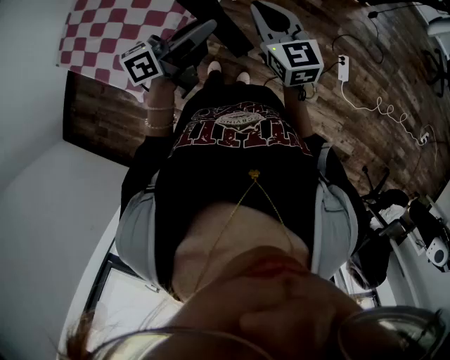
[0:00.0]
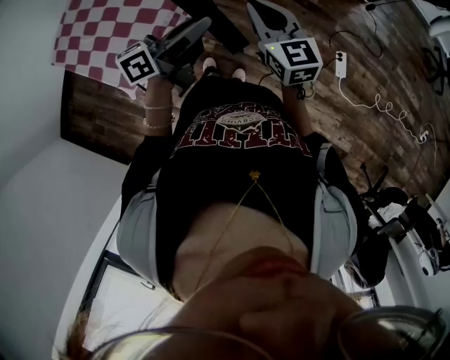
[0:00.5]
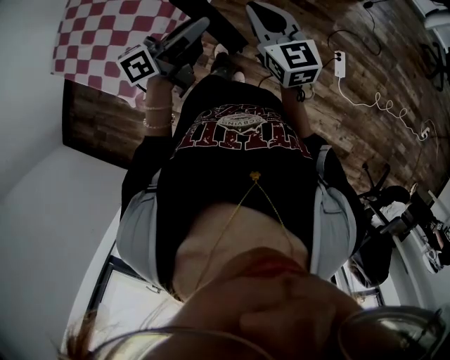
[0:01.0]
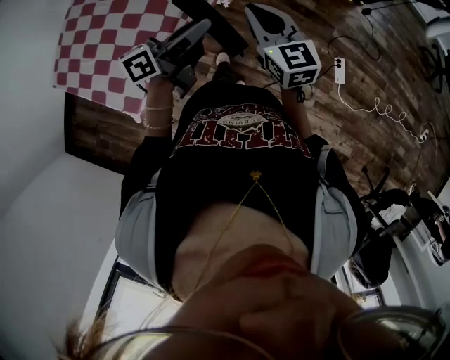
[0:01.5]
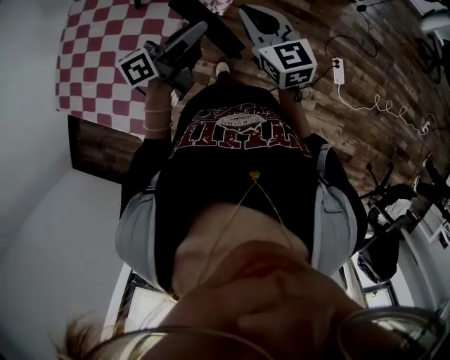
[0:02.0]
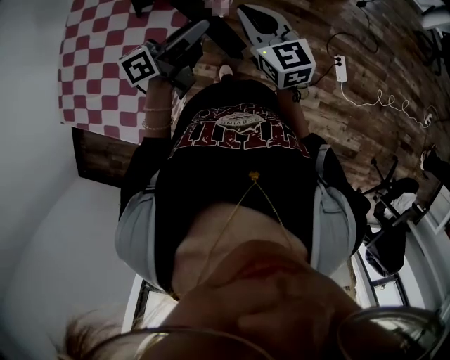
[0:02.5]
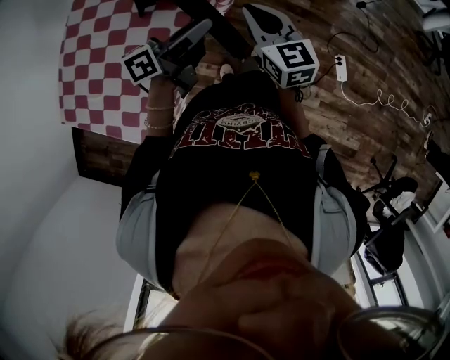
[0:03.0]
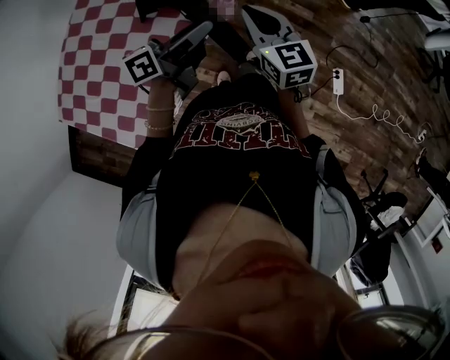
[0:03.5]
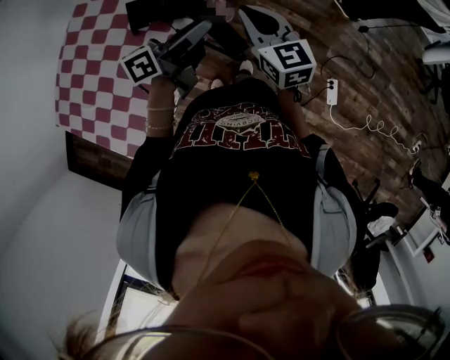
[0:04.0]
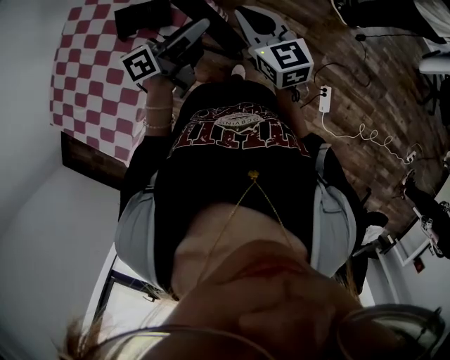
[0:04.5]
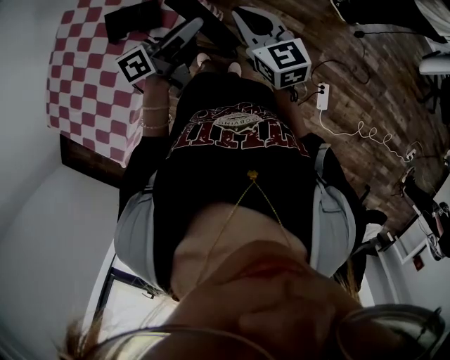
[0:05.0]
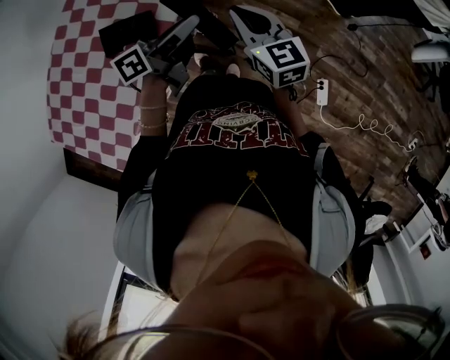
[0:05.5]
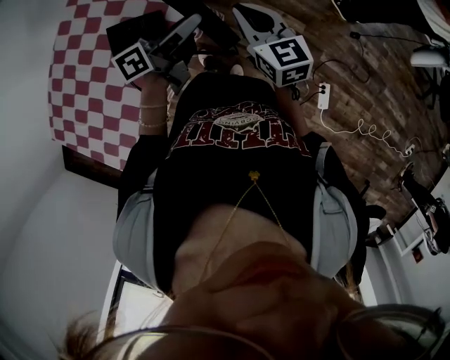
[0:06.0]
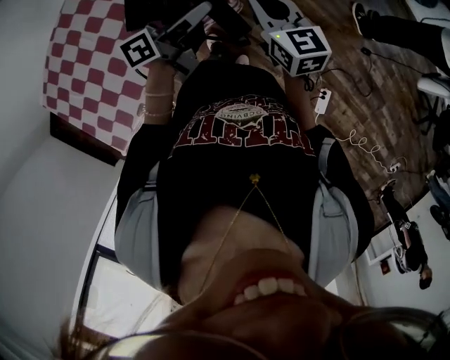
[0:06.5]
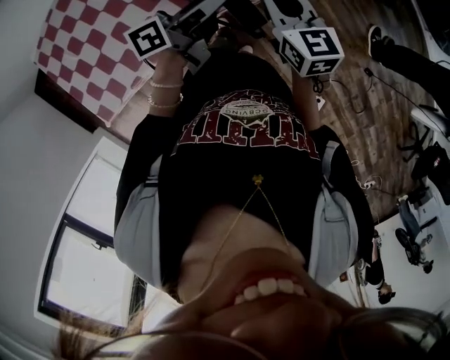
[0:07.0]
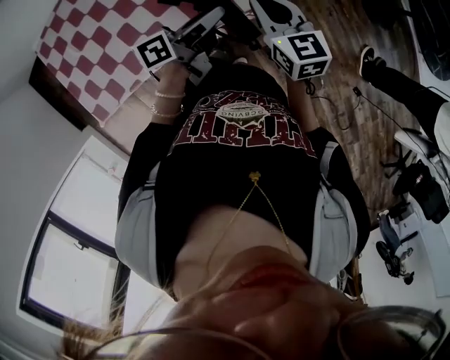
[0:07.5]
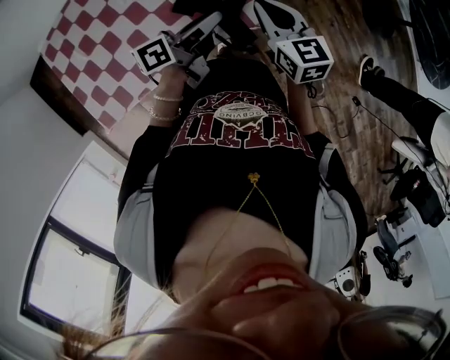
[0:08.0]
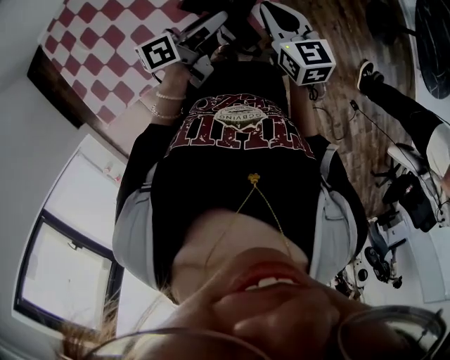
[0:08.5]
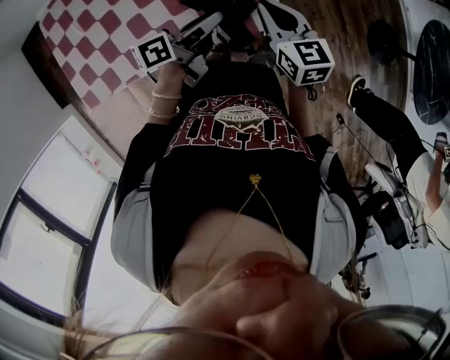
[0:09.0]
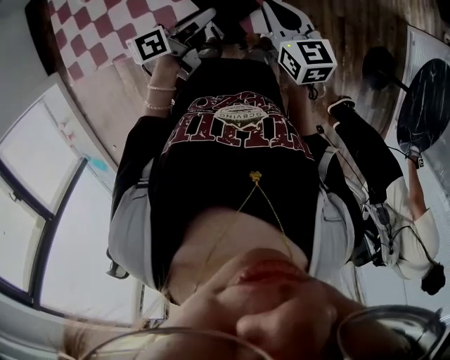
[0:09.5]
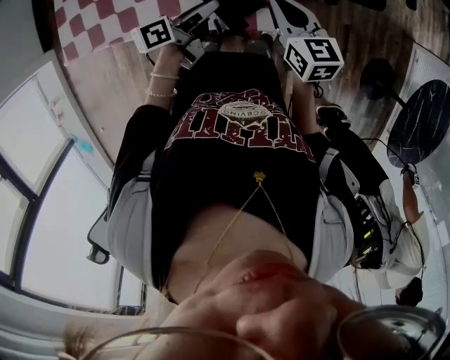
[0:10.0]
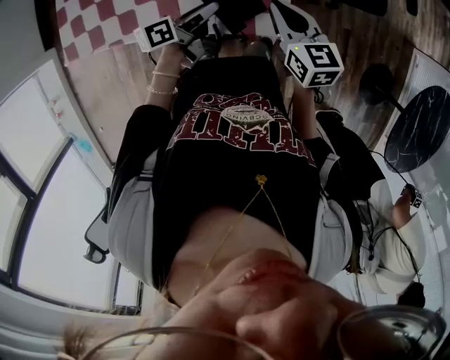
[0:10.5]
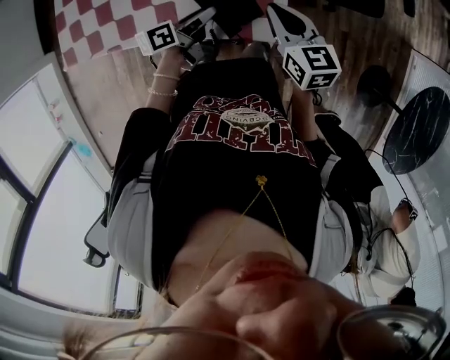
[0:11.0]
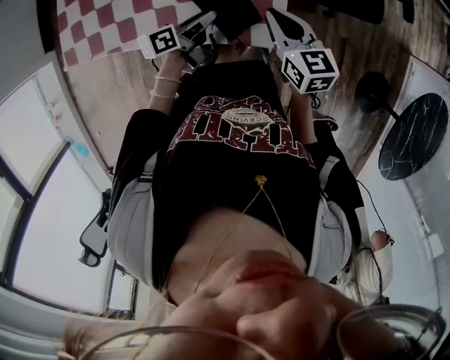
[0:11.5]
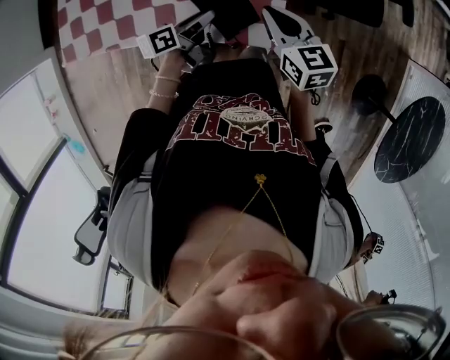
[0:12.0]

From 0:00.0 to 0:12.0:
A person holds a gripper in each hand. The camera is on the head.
From 0:00.0 to 0:02.0: Both grippers move forward, approximately 15 cm.
From 0:02.0 to 0:04.0: The grippers both shift forward by about 15 cm.
From 0:04.0 to 0:06.0: The two grippers go some 10 cm forward.
From 0:06.0 to 0:08.0: The right gripper ends up about 20 cm from where it was, and turns by roughly 30 degrees, while the left gripper shifts by about 20 cm, and swivels roughly 30 degrees.
From 0:08.0 to 0:10.0: The right gripper moves approximately 5 cm, and turns by approximately 30 degrees, while the left gripper shifts roughly 10 cm downward, and turns by approximately 30 degrees.
From 0:10.0 to 0:12.0: The left gripper moves downward, some 5 cm.

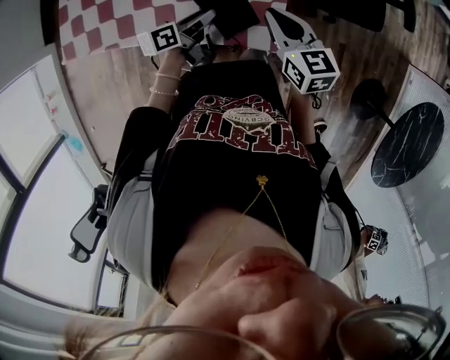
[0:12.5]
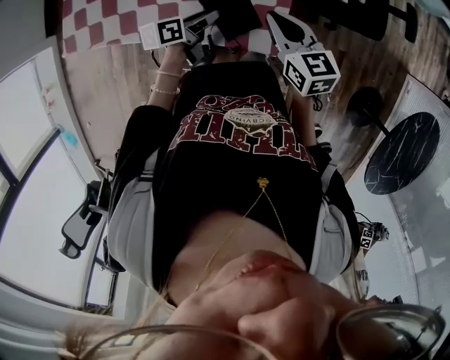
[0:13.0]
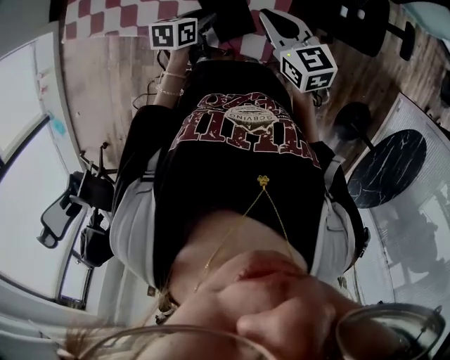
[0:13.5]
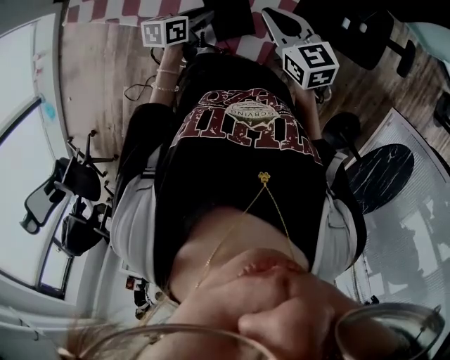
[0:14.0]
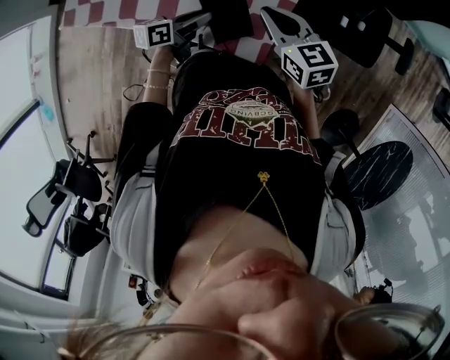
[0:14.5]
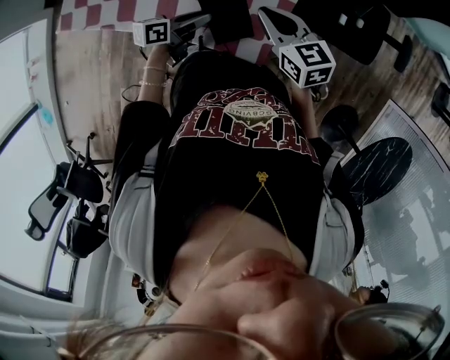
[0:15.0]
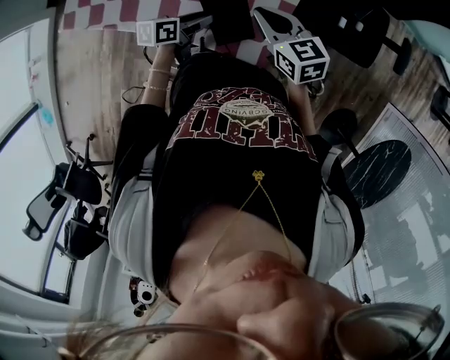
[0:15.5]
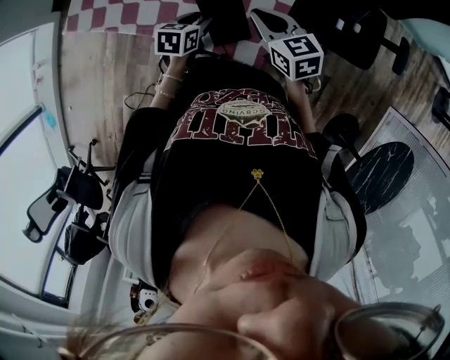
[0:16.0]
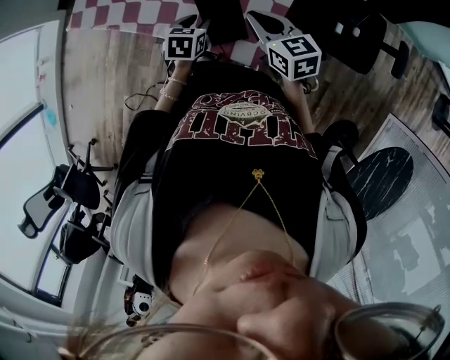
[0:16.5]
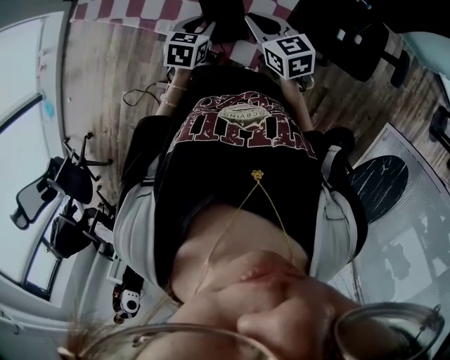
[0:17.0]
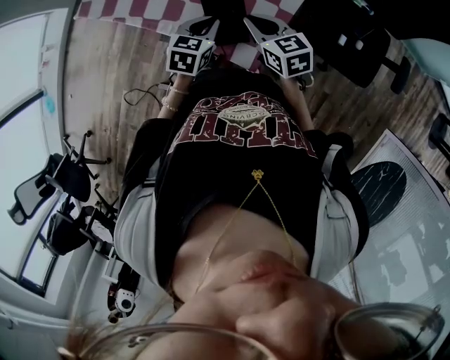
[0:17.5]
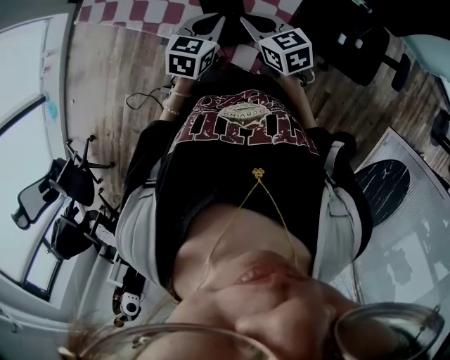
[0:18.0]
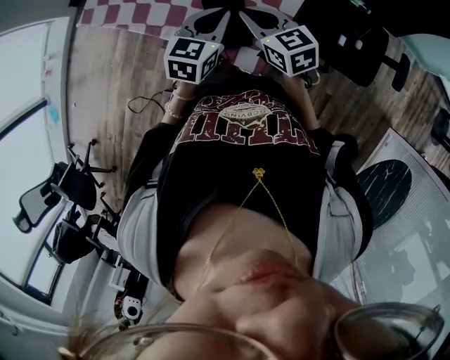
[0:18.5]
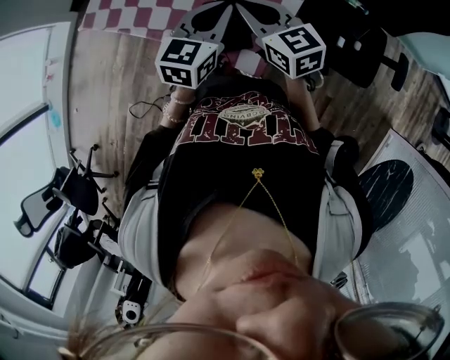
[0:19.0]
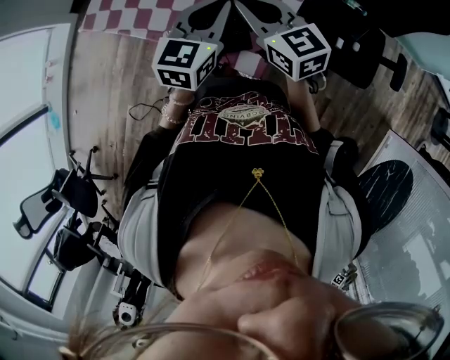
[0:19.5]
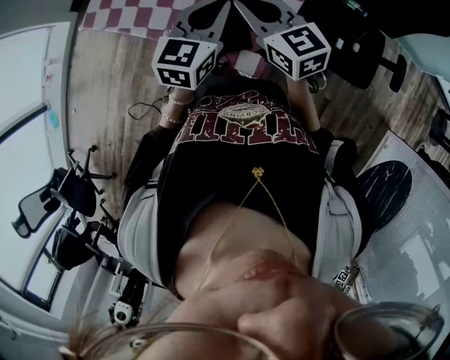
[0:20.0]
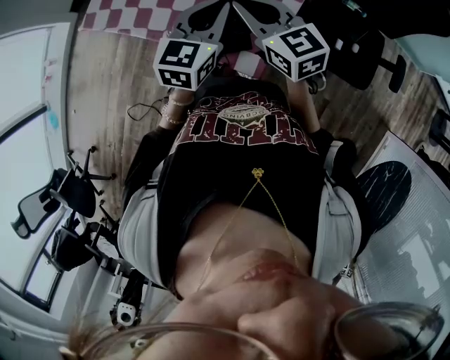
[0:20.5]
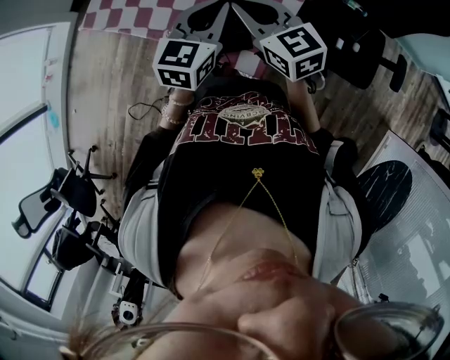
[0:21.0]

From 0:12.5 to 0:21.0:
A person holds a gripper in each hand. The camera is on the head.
From 0:12.5 to 0:14.5: The right gripper changes its angle by approximately 20 degrees.
From 0:14.5 to 0:16.5: The left gripper angles its fingers downward, by roughly 30 degrees.
From 0:16.5 to 0:19.0: The right gripper is displaced upward by about 10 cm; the left gripper shifts roughly 20 cm upward, angles its fingers upward, by approximately 30 degrees, and closes up.
From 0:19.0 to 0:21.0: The grippers move only a little.

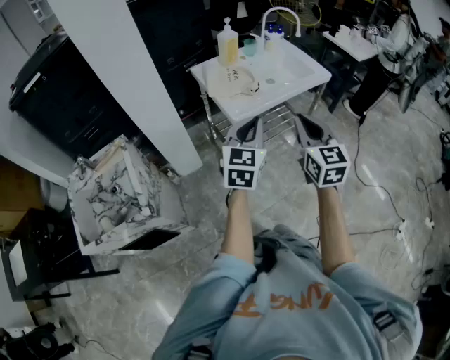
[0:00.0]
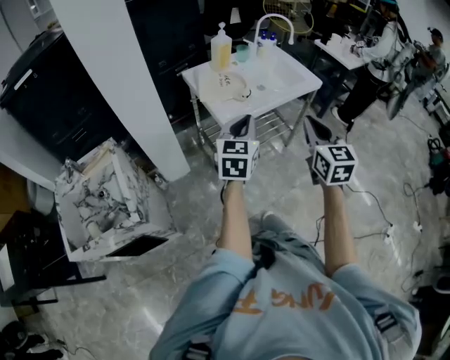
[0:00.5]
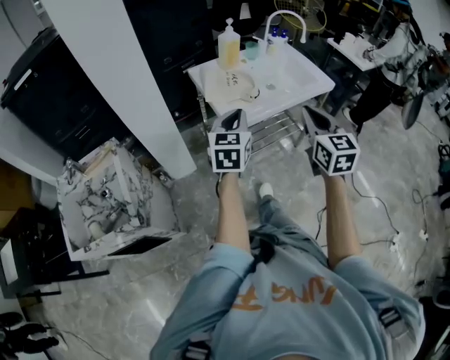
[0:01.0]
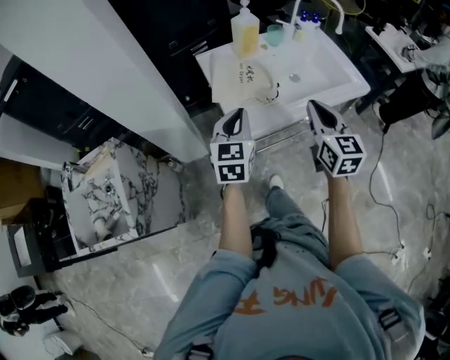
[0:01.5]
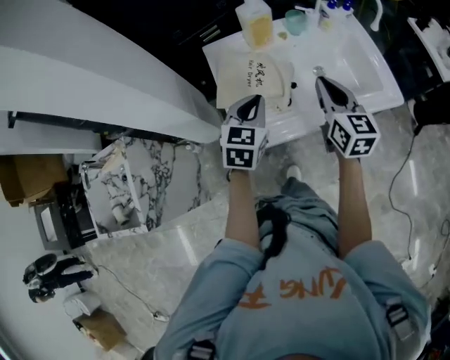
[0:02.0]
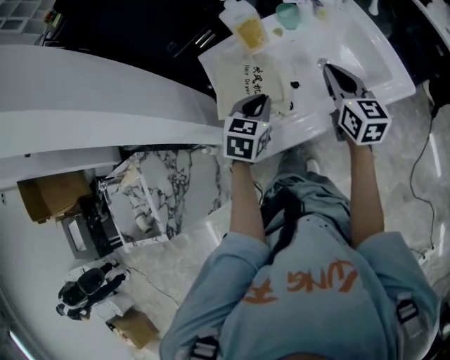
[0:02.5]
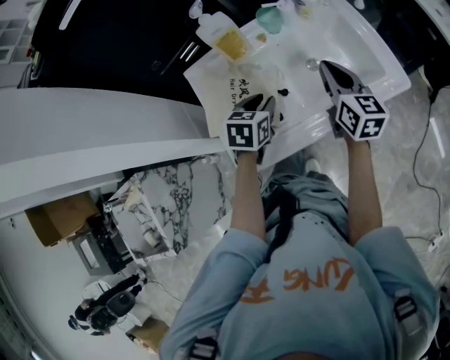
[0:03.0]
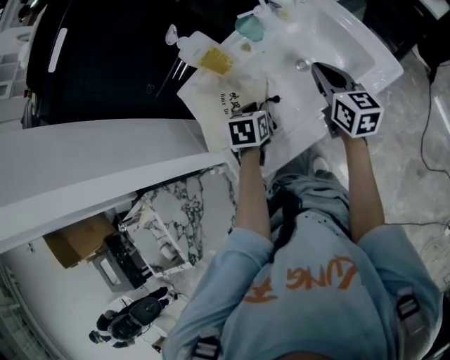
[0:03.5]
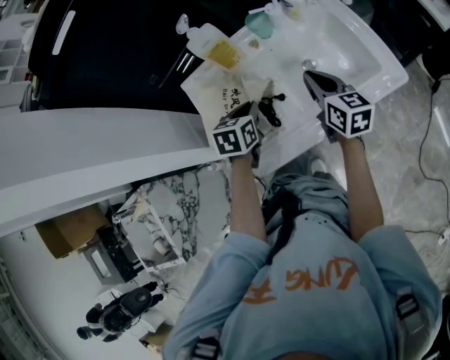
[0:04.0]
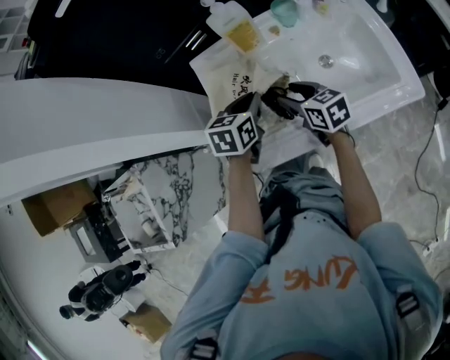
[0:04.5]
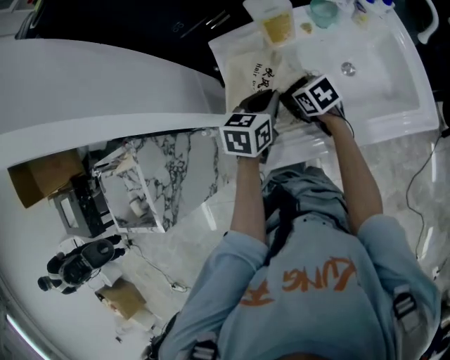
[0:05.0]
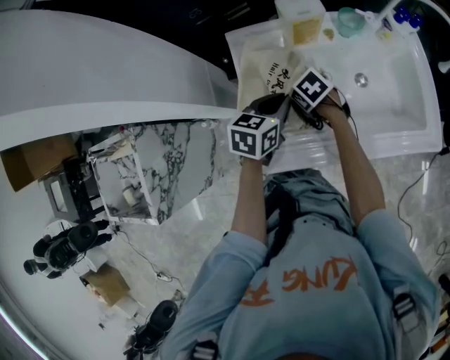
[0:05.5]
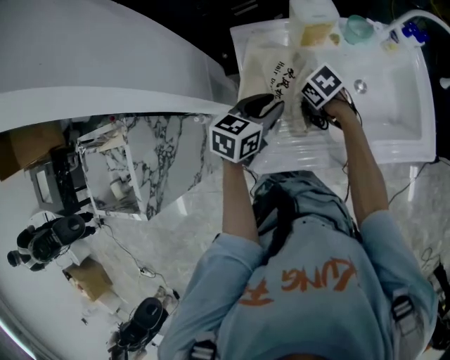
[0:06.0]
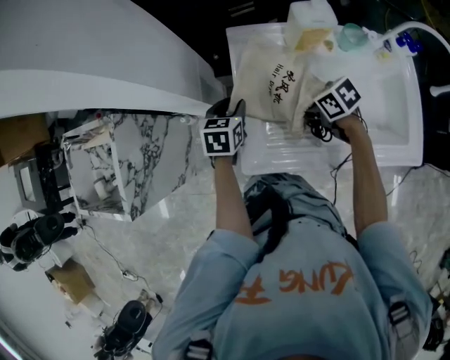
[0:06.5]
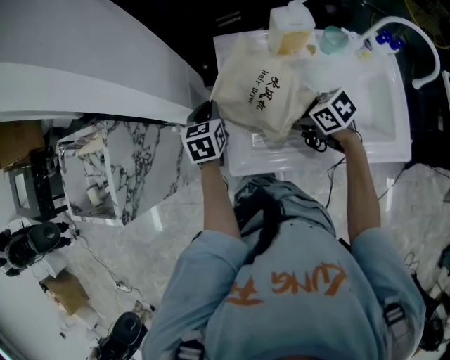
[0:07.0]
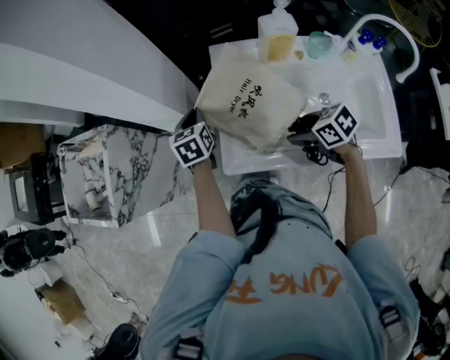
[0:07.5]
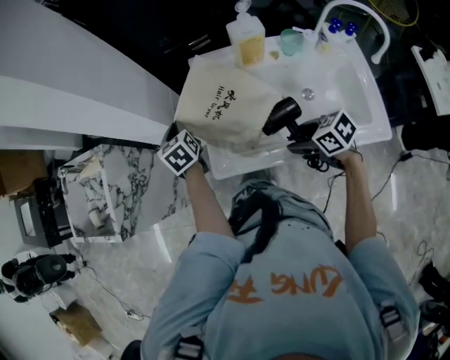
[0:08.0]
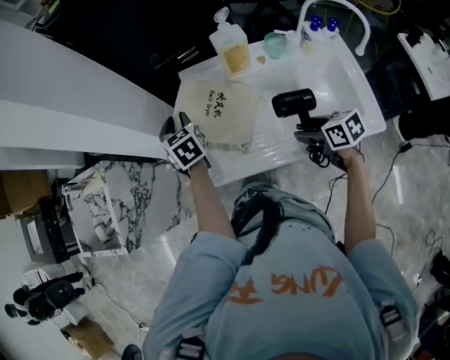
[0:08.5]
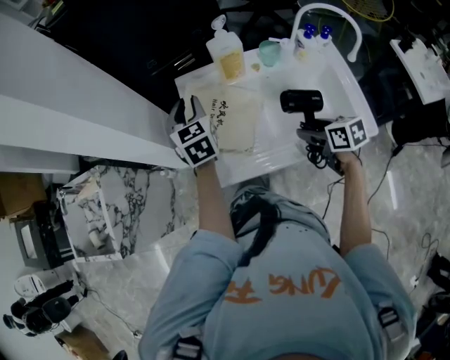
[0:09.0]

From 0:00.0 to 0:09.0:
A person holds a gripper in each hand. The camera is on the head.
From 0:00.0 to 0:02.0: Both grippers move forward, some 40 cm. The right gripper changes its angle by some 20 degrees. Meanwhile the left gripper changes its angle by about 30 degrees.
From 0:02.0 to 0:04.5: The right gripper goes about 20 cm downward and to the left, changes its angle by some 30 degrees, and opens. Meanwhile the left gripper travels forward and downward by roughly 15 cm, turns by about 20 degrees, and opens and closes again.
From 0:04.5 to 0:07.0: The left gripper moves about 20 cm, swivels about 30 degrees, and opens and closes again; the right gripper reaches approximately 10 cm downward, then returns, and rotates approximately 40 degrees.
From 0:07.0 to 0:09.0: The left gripper goes approximately 20 cm upward and to the right, rotates approximately 20 degrees, and opens. Meanwhile the right gripper shifts approximately 20 cm backward and to the right, and changes its angle by some 30 degrees.
